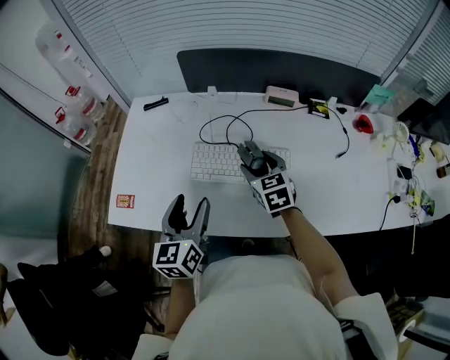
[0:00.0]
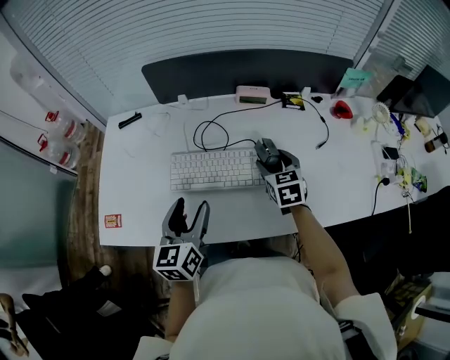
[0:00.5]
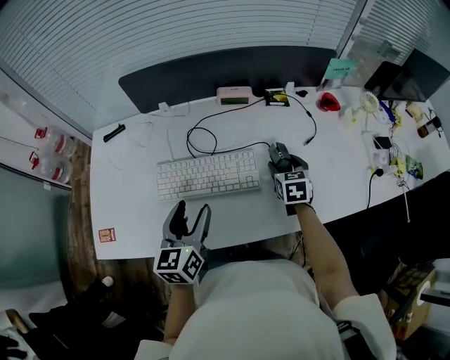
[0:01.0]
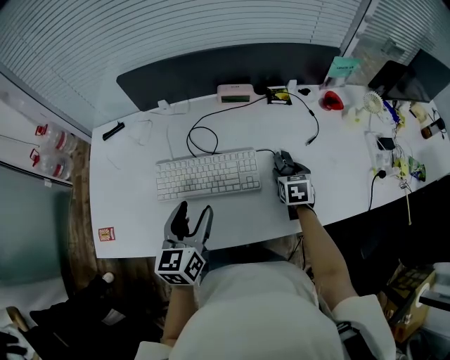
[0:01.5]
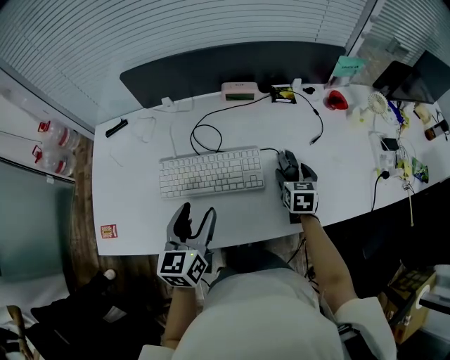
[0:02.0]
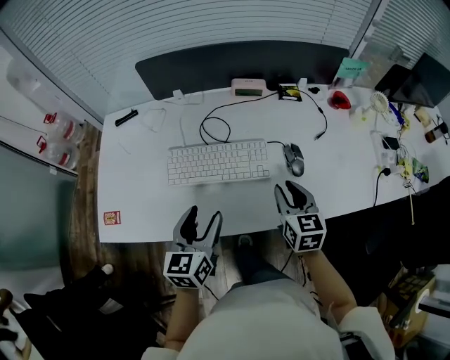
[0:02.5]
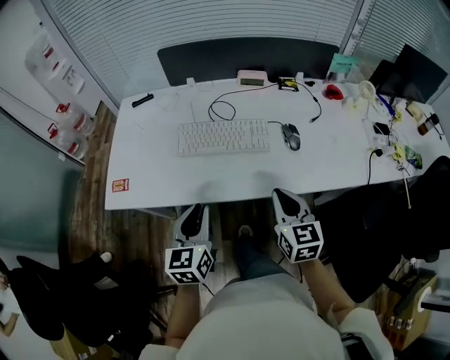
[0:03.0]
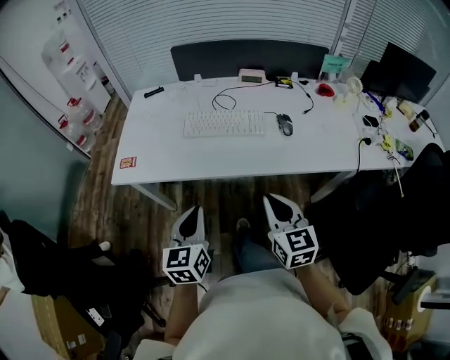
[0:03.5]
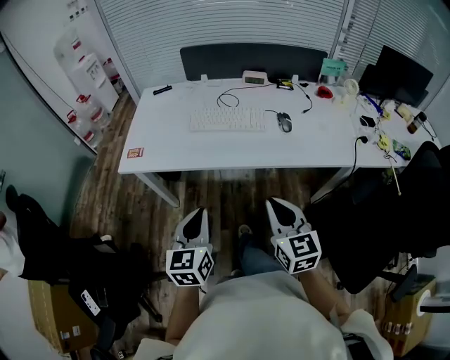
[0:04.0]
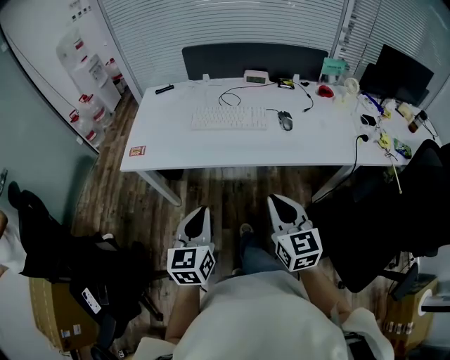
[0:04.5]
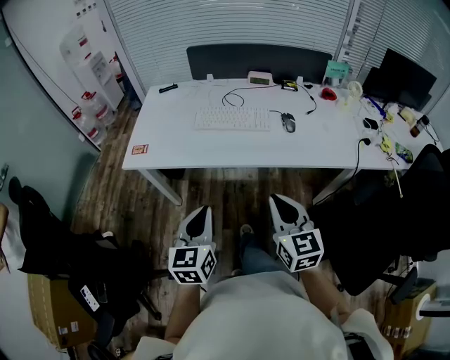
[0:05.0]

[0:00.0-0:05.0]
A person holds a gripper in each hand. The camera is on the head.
0:00.0 to 0:02.5: The right gripper heads to the right and backward, covering approximately 20 cm, changes its angle by approximately 20 degrees, and closes its fingers; the left gripper goes some 10 cm to the right.
0:02.5 to 0:05.0: The two grippers go approximately 35 cm backward. The left gripper closes; the right gripper turns by approximately 20 degrees, and closes its fingers.

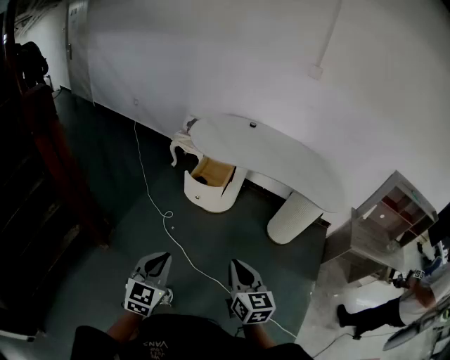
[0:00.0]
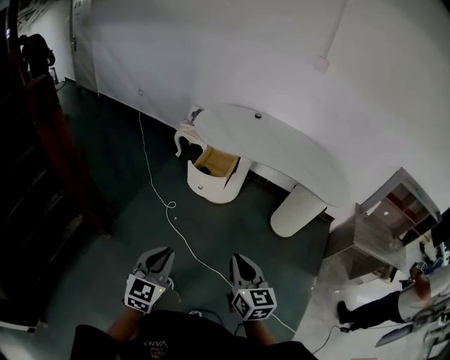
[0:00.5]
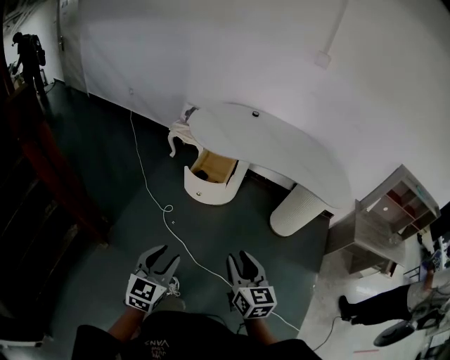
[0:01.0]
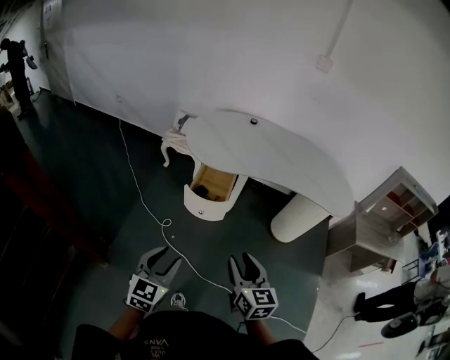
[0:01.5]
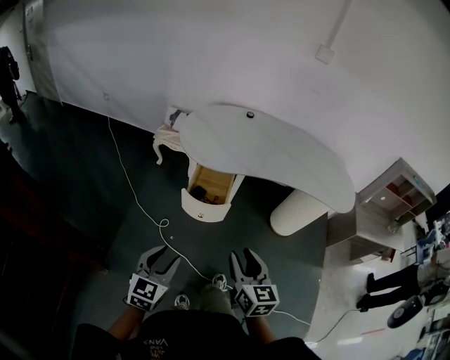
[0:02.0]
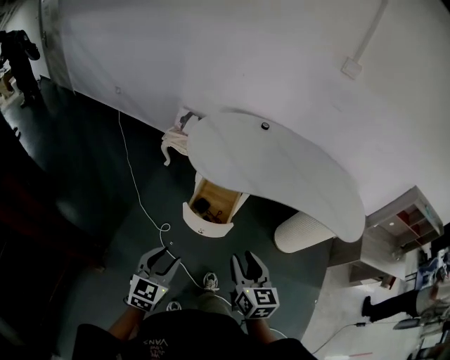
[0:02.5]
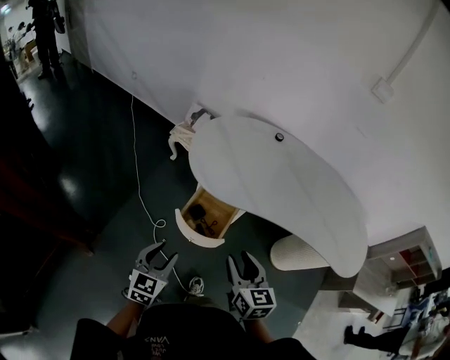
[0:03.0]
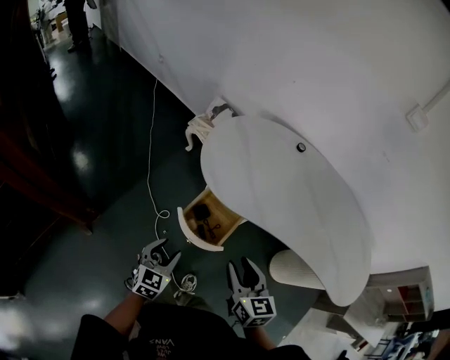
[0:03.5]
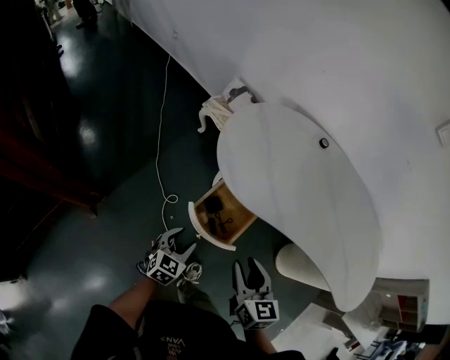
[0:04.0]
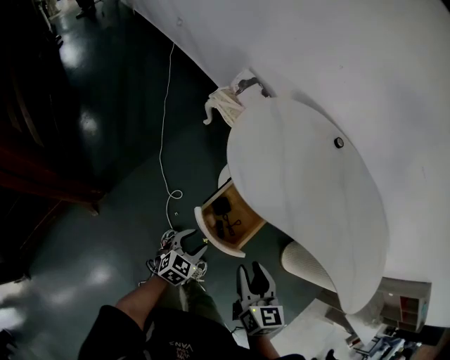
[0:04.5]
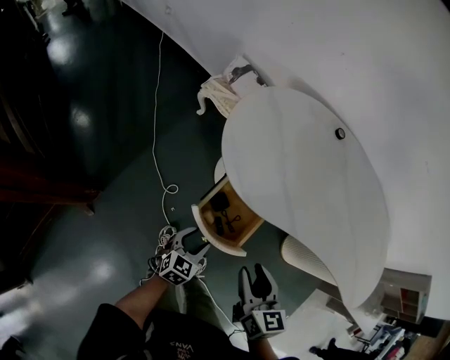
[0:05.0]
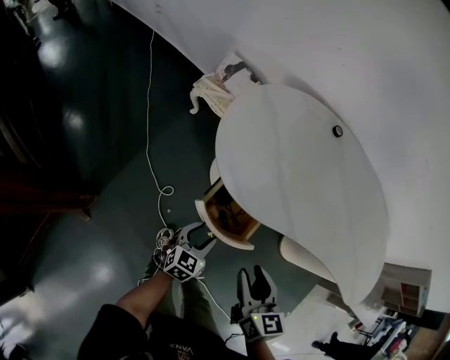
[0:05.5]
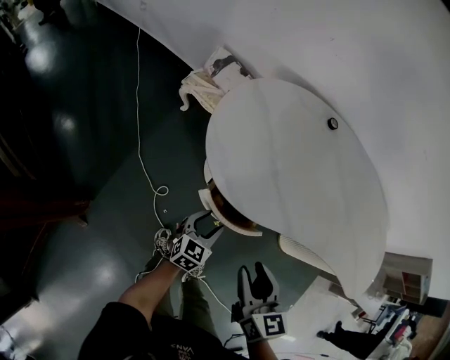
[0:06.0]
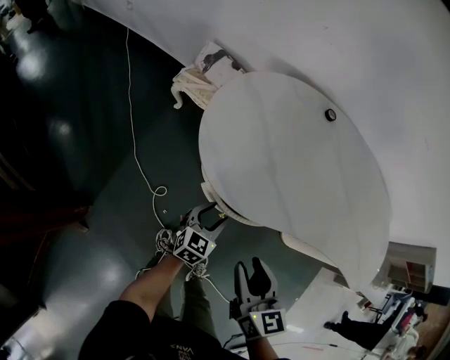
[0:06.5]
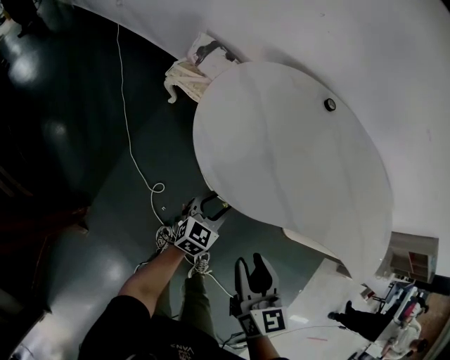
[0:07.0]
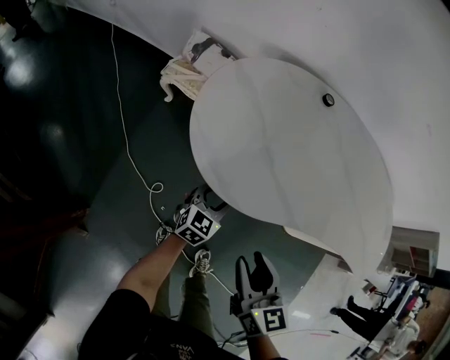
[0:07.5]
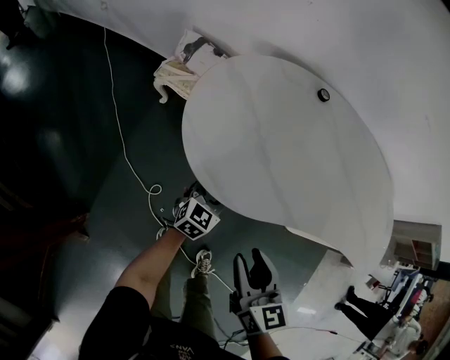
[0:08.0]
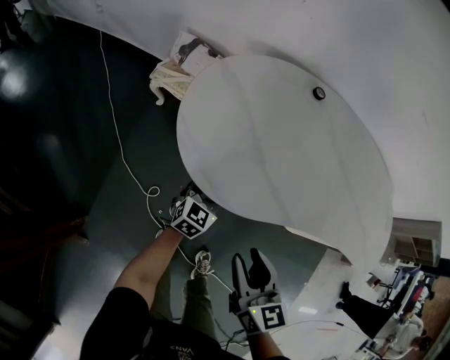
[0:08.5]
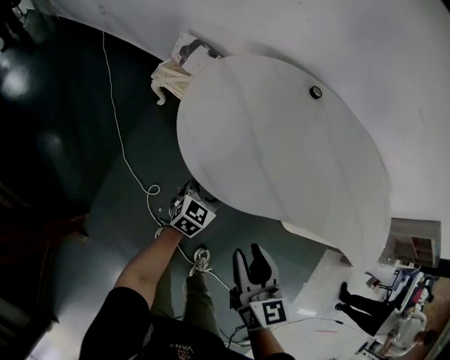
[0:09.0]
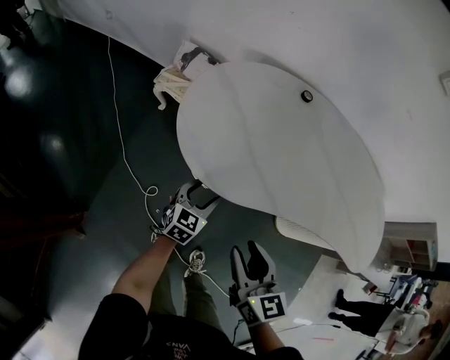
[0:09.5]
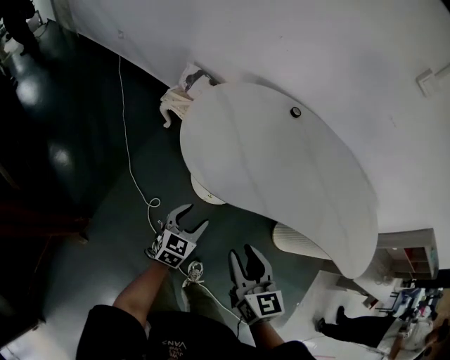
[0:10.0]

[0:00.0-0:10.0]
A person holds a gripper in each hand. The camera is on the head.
0:00.0 to 0:02.0: Both grippers travel together forward, some 25 cm. The left gripper opens its fingers, while the right gripper opens up.
0:02.0 to 0:04.0: The left gripper is displaced forward and downward by some 30 cm, and swivels about 20 degrees. The right gripper is displaced forward by some 25 cm, and rotates about 30 degrees.
0:04.0 to 0:06.0: The left gripper shifts about 15 cm forward. Meanwhile the right gripper shifts approximately 5 cm forward.
0:06.0 to 0:08.0: The left gripper moves forward, approximately 10 cm.
0:08.0 to 0:10.0: The right gripper travels backward and to the right by roughly 10 cm, while the left gripper travels backward and upward by about 15 cm.

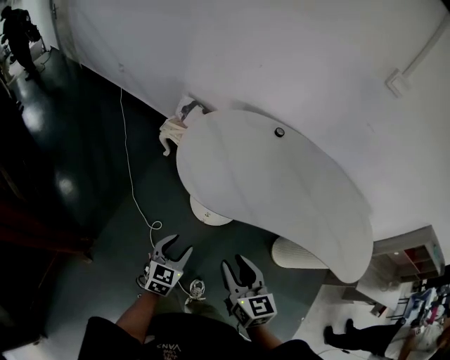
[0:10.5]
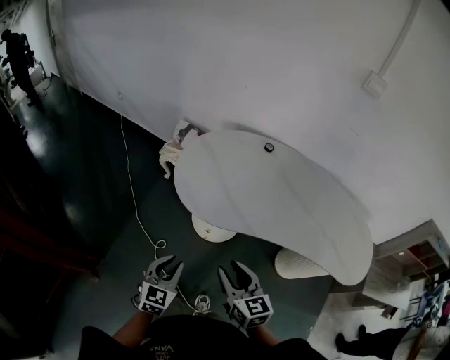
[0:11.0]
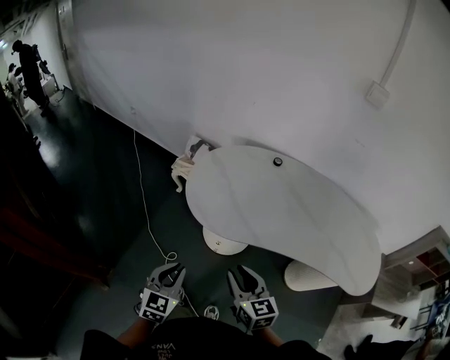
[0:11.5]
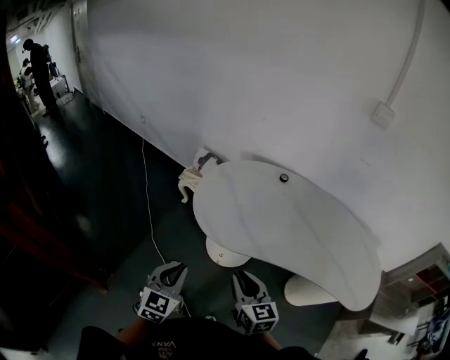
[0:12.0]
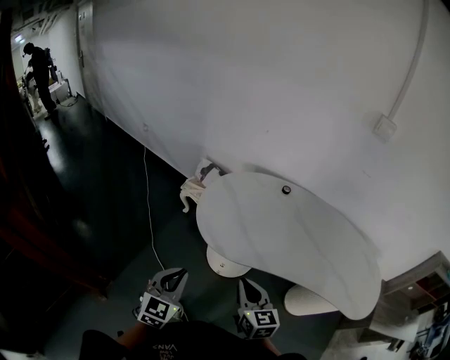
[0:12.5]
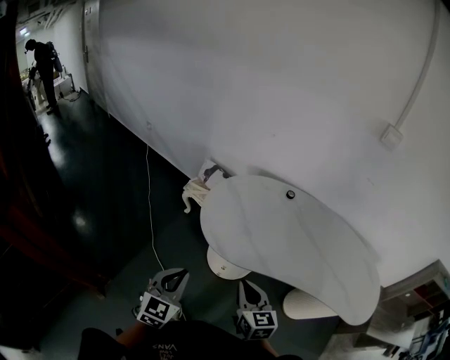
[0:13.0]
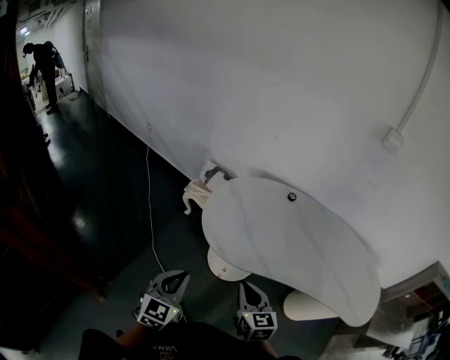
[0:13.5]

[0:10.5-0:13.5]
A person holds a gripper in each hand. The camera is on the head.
0:10.5 to 0:12.0: The left gripper heads upward, covering some 15 cm, and closes.
0:12.0 to 0:13.5: The grippers make only small movements.

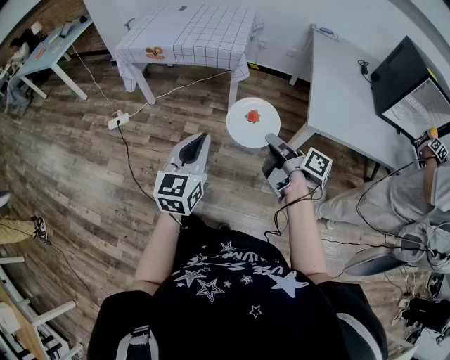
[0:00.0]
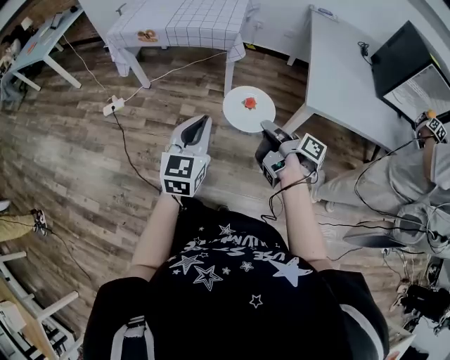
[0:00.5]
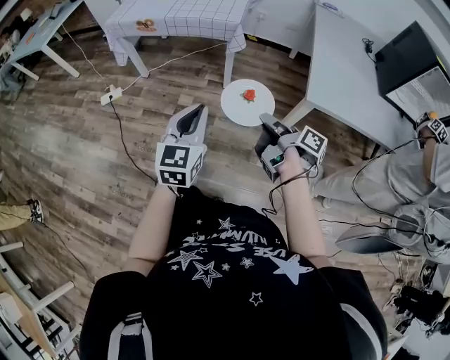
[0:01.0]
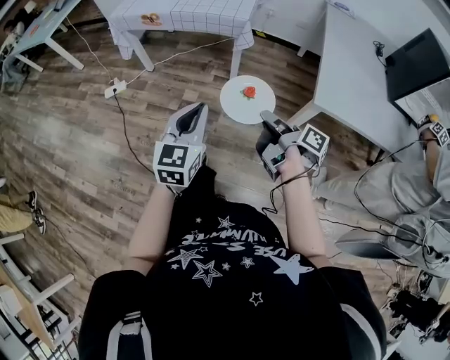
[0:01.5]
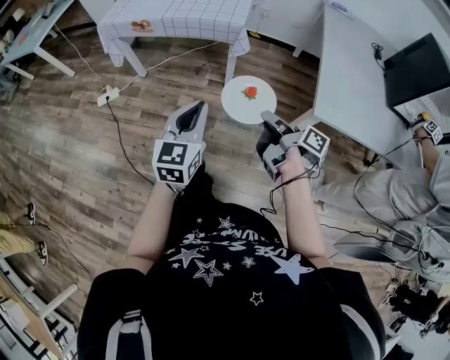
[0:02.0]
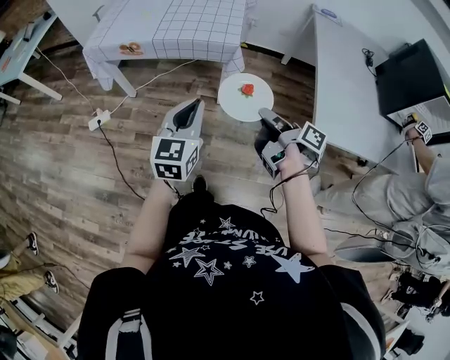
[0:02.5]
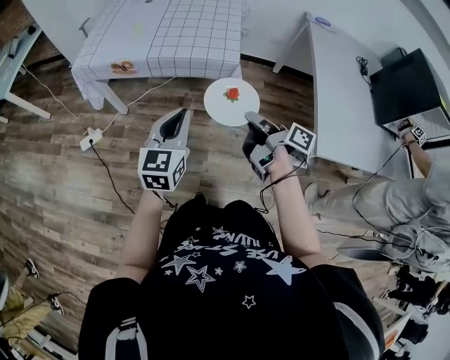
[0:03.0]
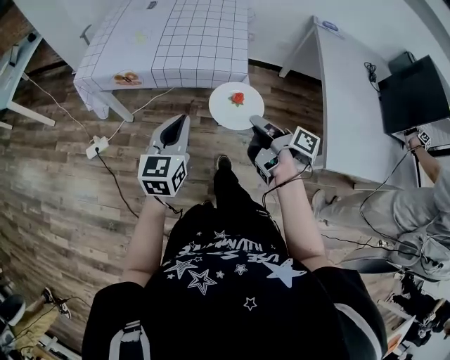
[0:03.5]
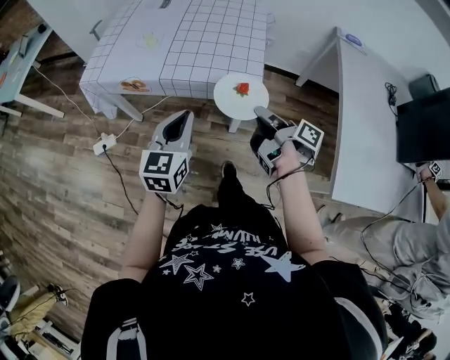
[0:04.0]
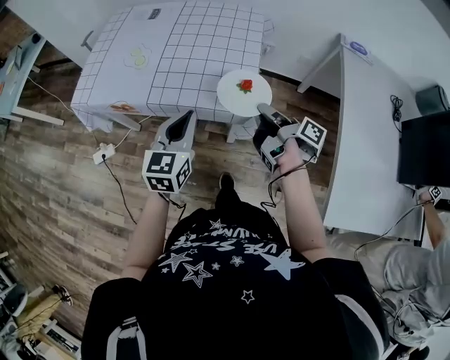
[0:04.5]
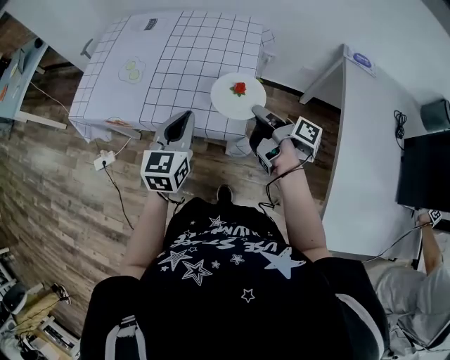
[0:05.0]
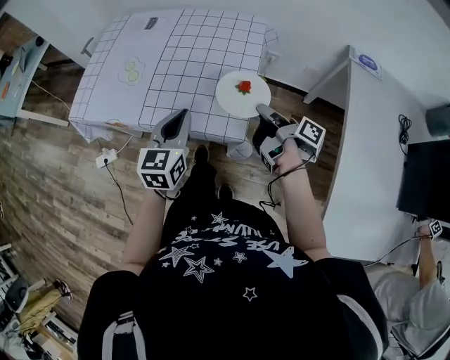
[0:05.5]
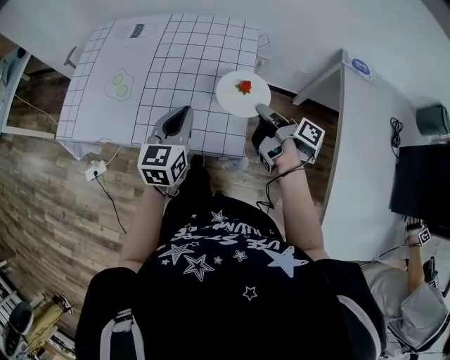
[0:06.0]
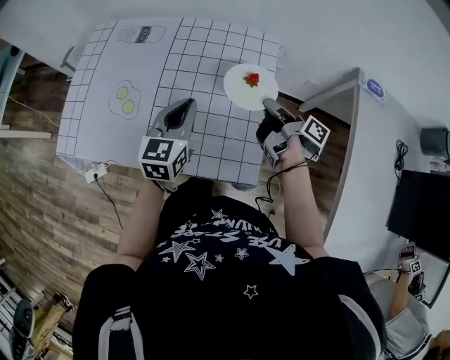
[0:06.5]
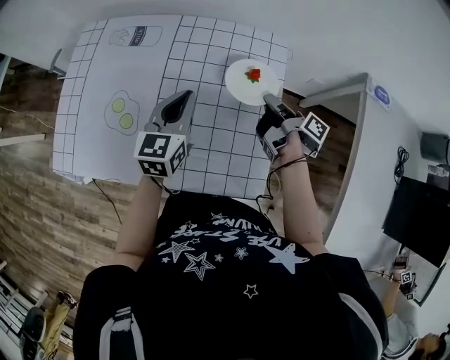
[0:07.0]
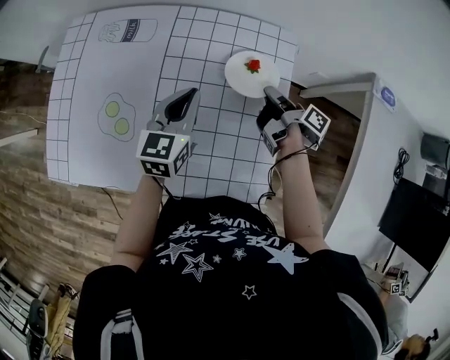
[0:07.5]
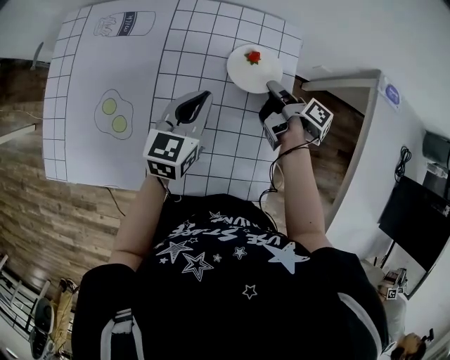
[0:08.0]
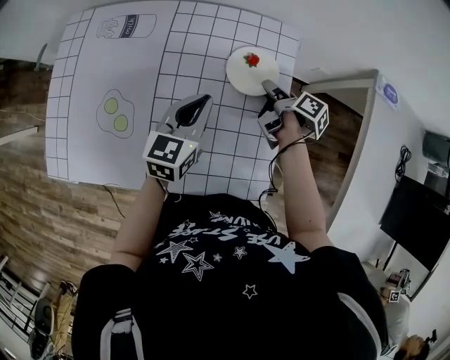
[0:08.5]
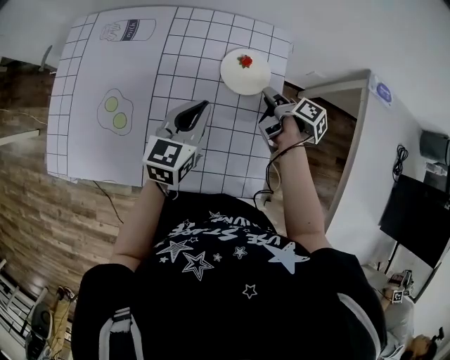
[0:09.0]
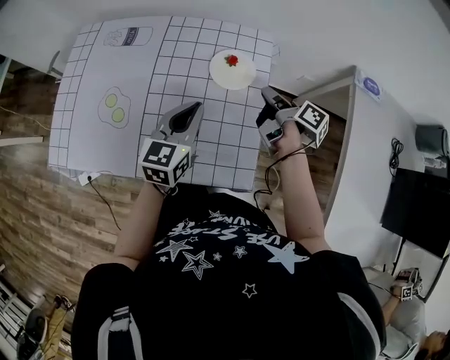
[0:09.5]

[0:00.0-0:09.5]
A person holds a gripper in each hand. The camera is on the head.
0:00.0 to 0:02.0: The left gripper shifts by roughly 15 cm.
0:02.0 to 0:04.0: The left gripper ends up roughly 35 cm from where it was.
0:04.0 to 0:05.5: The left gripper moves roughly 20 cm.
0:05.5 to 0:07.5: The left gripper changes place by about 30 cm.
0:07.5 to 0:09.5: The left gripper ends up some 10 cm from where it was.
